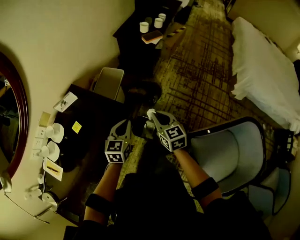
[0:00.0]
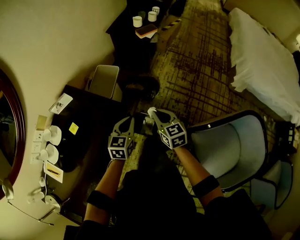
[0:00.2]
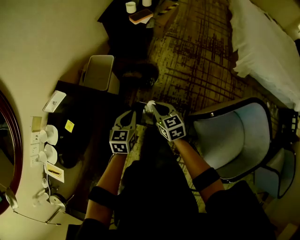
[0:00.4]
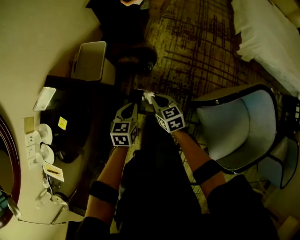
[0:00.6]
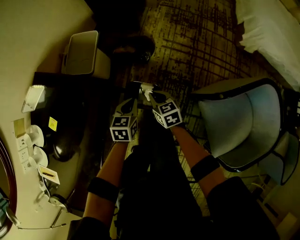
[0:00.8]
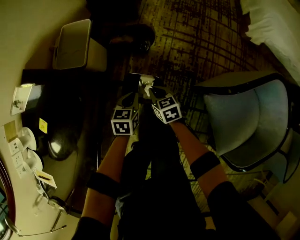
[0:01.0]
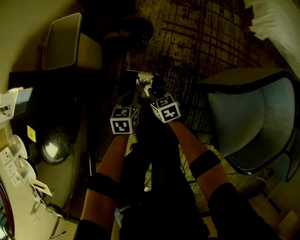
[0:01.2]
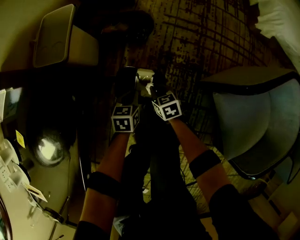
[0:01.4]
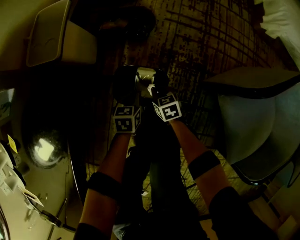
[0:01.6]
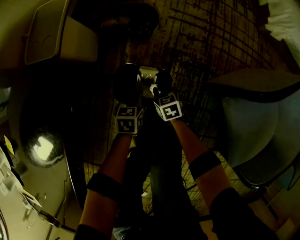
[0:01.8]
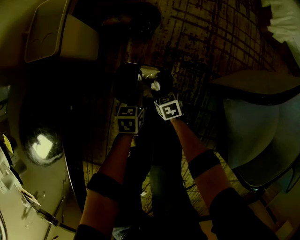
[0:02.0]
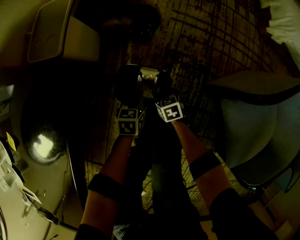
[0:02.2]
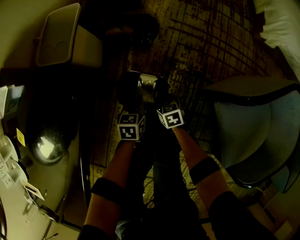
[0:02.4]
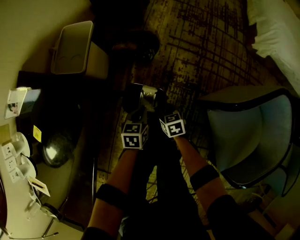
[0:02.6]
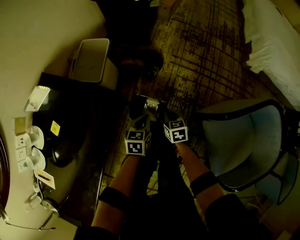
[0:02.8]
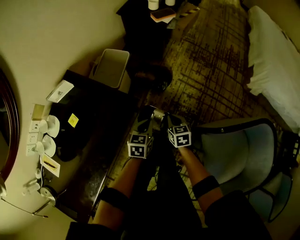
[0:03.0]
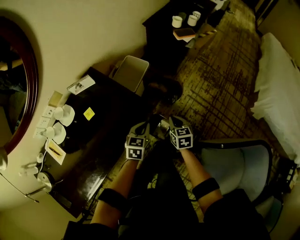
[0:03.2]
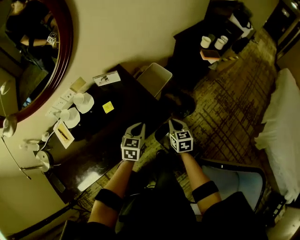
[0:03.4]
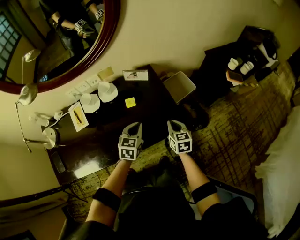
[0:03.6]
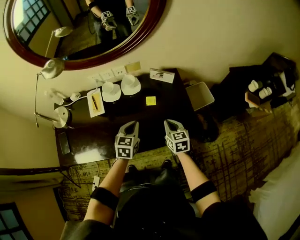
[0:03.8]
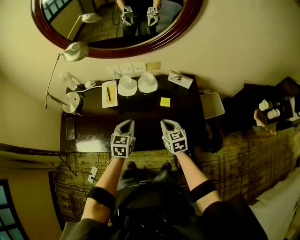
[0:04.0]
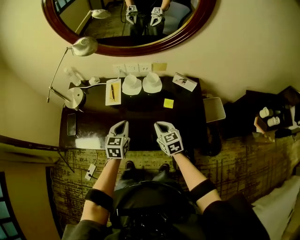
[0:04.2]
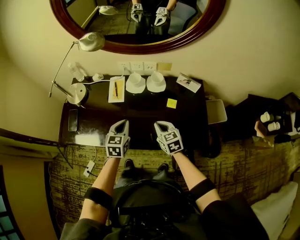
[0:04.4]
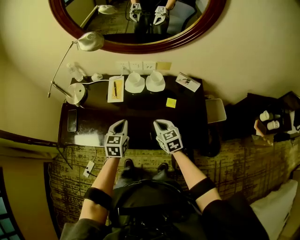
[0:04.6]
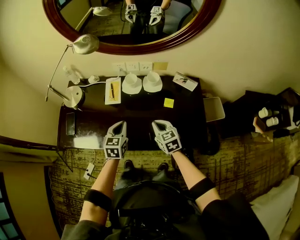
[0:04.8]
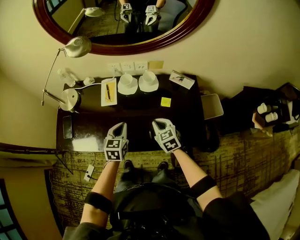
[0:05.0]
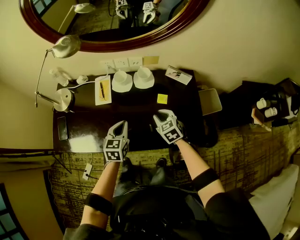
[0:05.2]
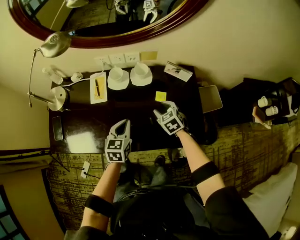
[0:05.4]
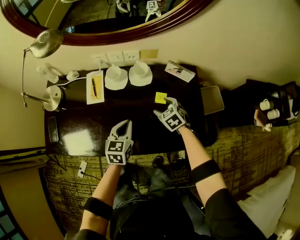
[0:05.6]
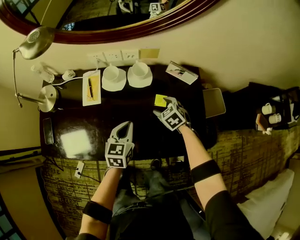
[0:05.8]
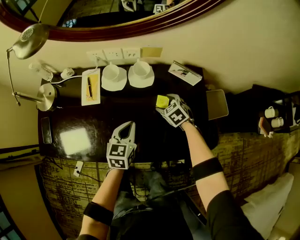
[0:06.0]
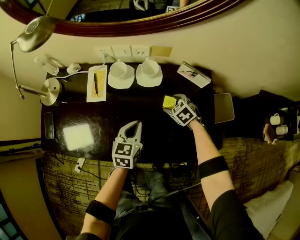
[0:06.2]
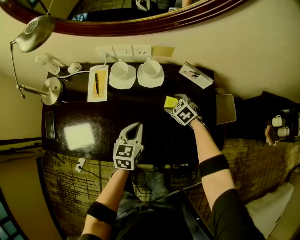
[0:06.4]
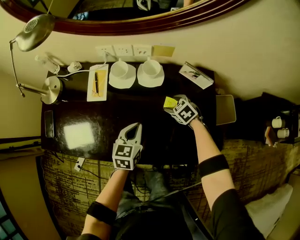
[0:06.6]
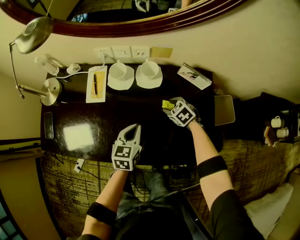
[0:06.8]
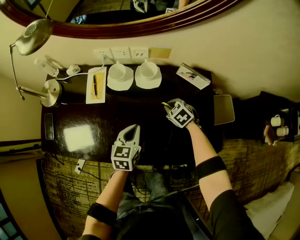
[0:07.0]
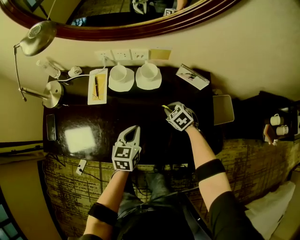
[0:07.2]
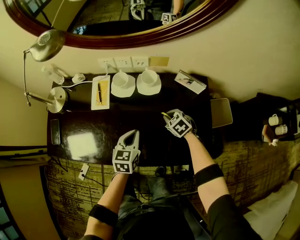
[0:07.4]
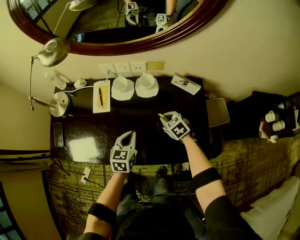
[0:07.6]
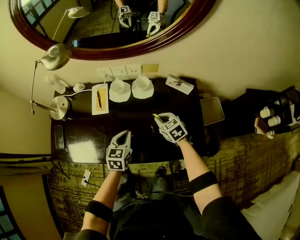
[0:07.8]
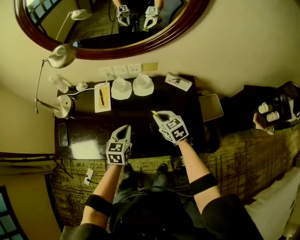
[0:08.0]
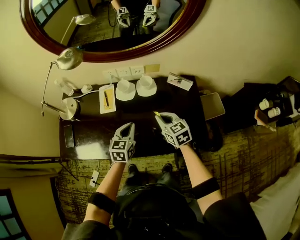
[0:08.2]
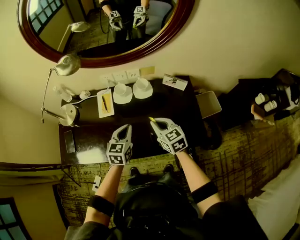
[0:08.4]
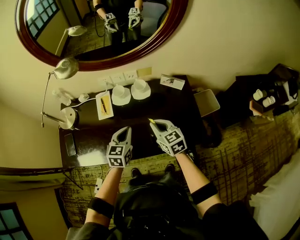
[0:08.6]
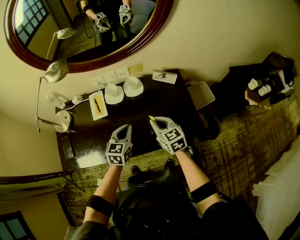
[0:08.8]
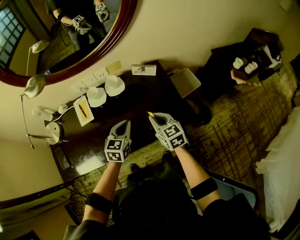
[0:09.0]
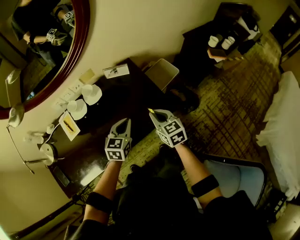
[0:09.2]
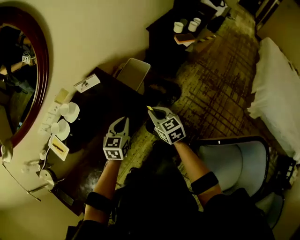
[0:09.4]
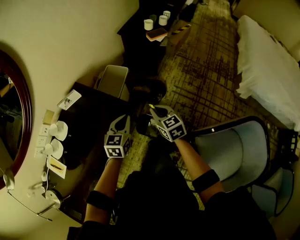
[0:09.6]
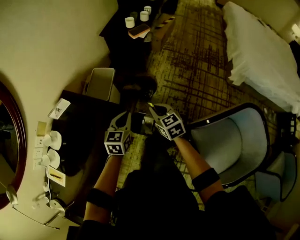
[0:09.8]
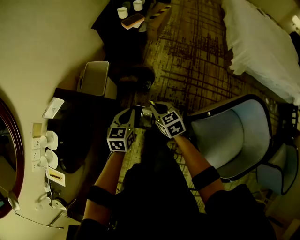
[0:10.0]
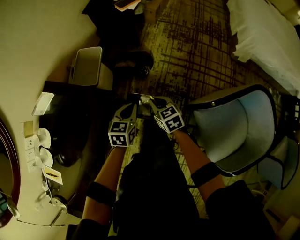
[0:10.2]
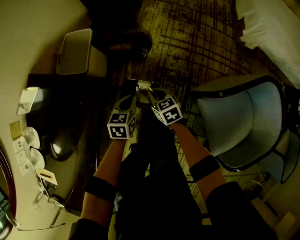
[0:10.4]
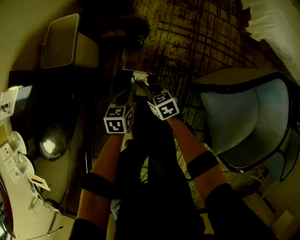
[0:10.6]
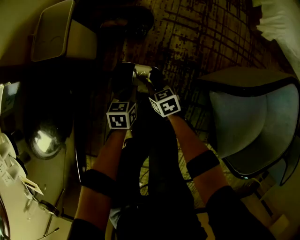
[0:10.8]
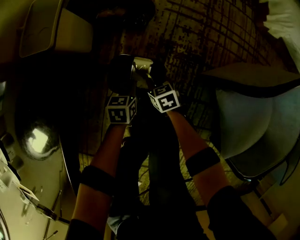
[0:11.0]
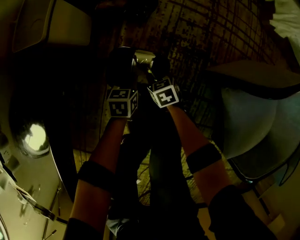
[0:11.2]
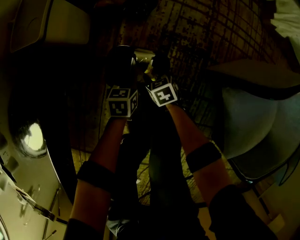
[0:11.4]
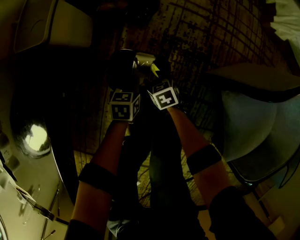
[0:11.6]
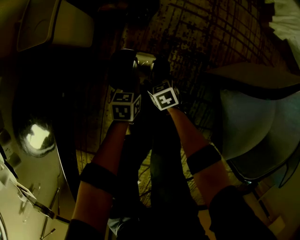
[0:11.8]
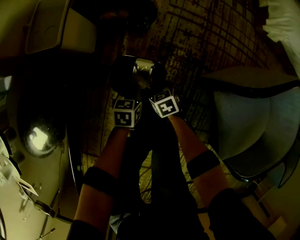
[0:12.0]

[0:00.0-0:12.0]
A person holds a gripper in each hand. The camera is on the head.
0:00.0 to 0:01.6: Both grippers travel together downward, approximately 60 cm. The left gripper rotates some 30 degrees. The right gripper changes its angle by about 30 degrees.
0:01.6 to 0:03.0: Both grippers move upward, roughly 40 cm.
0:03.0 to 0:04.4: The two grippers travel together, approximately 50 cm. The left gripper turns by approximately 70 degrees. The right gripper turns by approximately 80 degrees.
0:04.4 to 0:06.0: The left gripper goes approximately 15 cm to the right, downward and forward. The right gripper is displaced forward, downward and to the right by roughly 25 cm, rotates approximately 30 degrees, and opens its fingers.
0:06.0 to 0:07.6: The right gripper shifts by about 5 cm, and closes its fingers.
0:07.6 to 0:09.0: The right gripper moves upward, approximately 15 cm, and changes its angle by about 40 degrees, while the left gripper moves upward, approximately 10 cm, and changes its angle by roughly 30 degrees.
0:09.0 to 0:10.4: The pair of grippers is taken approximately 40 cm. The left gripper changes its angle by about 50 degrees; the right gripper rotates some 60 degrees.
0:10.4 to 0:12.0: The two grippers go roughly 30 cm downward. The right gripper opens its fingers.

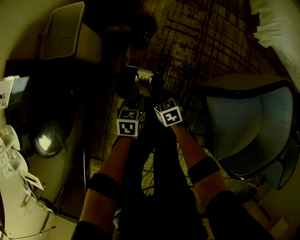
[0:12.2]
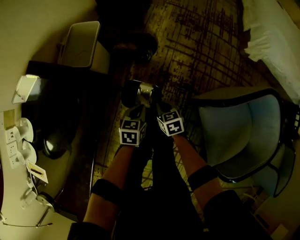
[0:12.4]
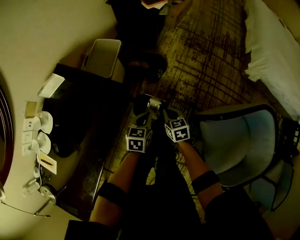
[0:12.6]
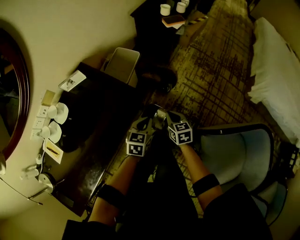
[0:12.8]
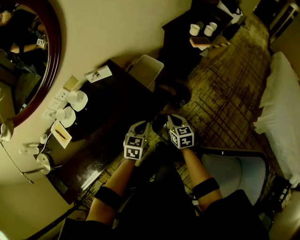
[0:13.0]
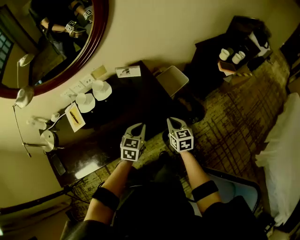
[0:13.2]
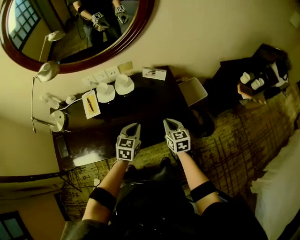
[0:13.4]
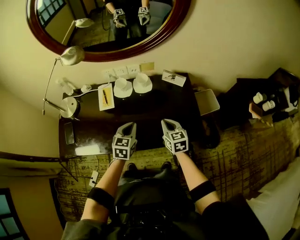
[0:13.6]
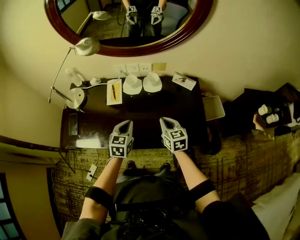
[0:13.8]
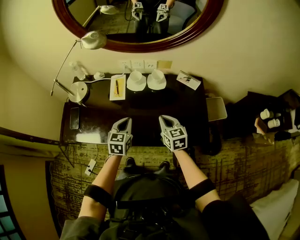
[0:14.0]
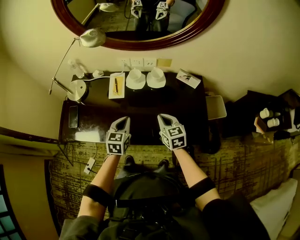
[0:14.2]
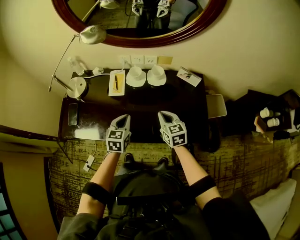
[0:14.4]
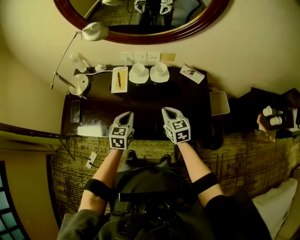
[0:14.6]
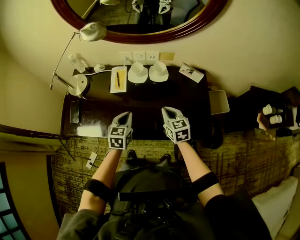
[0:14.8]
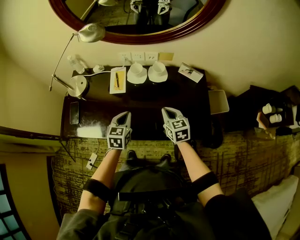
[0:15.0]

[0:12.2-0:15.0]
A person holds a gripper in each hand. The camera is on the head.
0:12.2 to 0:13.6: Both grippers are carried some 50 cm. The right gripper goes some 50 cm upward, and turns by roughly 60 degrees. Meanwhile the left gripper turns by approximately 70 degrees.
0:13.6 to 0:15.0: Both grippers move to the left, about 10 cm.

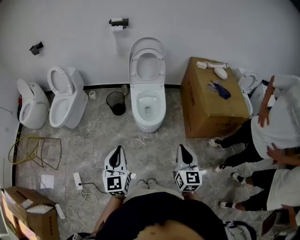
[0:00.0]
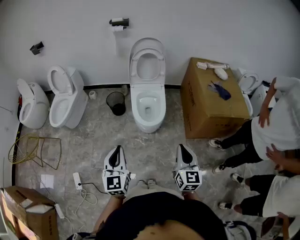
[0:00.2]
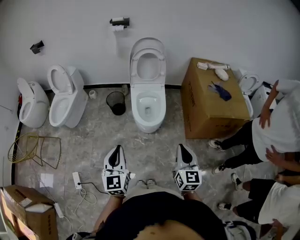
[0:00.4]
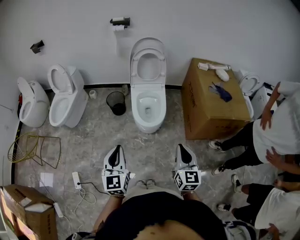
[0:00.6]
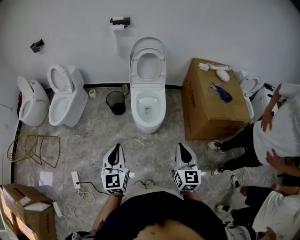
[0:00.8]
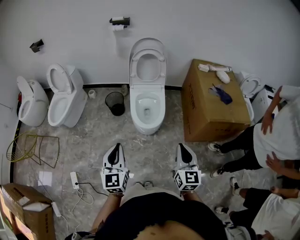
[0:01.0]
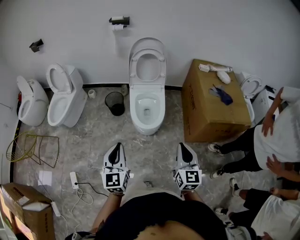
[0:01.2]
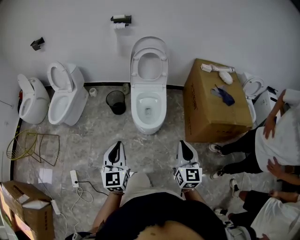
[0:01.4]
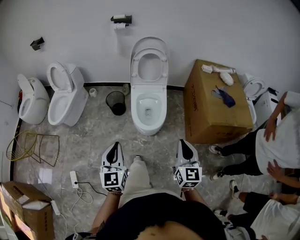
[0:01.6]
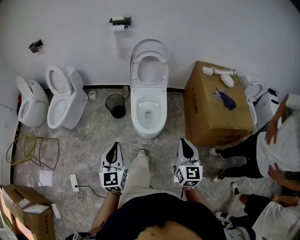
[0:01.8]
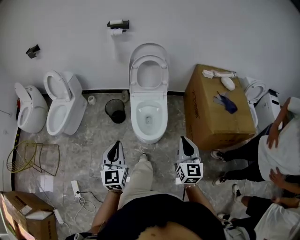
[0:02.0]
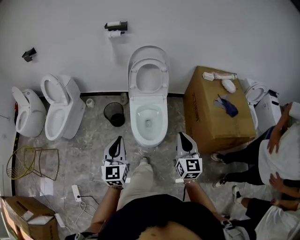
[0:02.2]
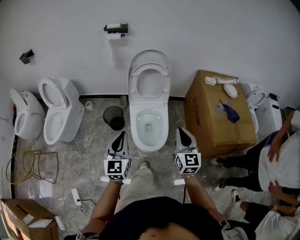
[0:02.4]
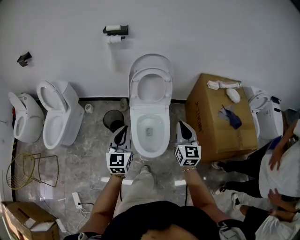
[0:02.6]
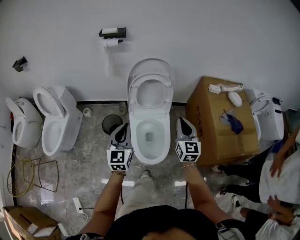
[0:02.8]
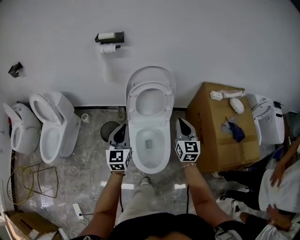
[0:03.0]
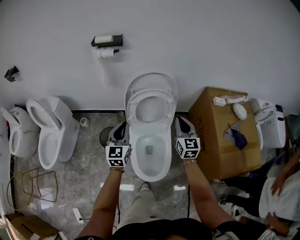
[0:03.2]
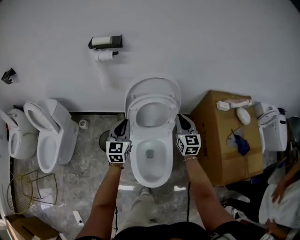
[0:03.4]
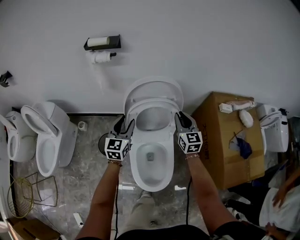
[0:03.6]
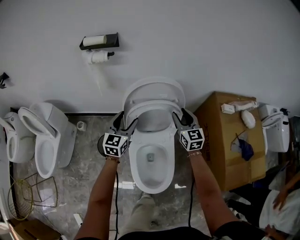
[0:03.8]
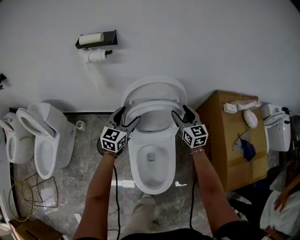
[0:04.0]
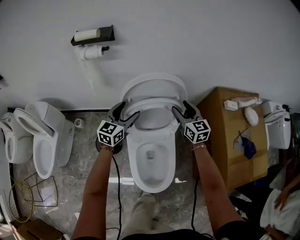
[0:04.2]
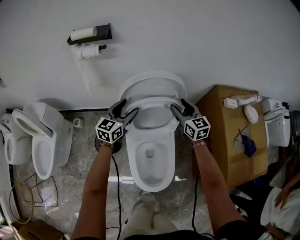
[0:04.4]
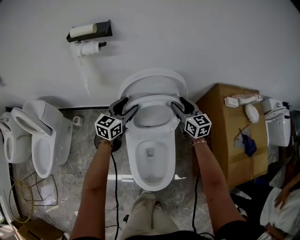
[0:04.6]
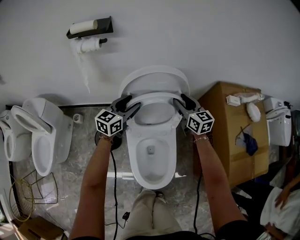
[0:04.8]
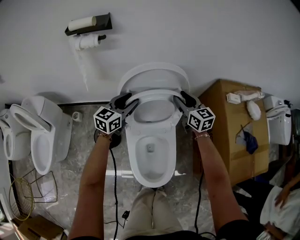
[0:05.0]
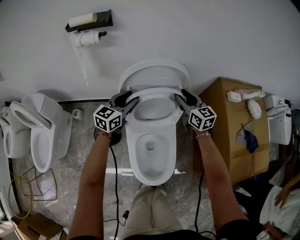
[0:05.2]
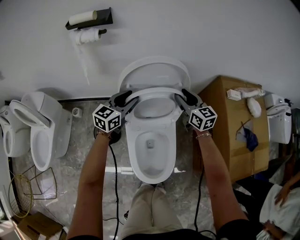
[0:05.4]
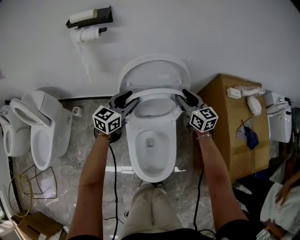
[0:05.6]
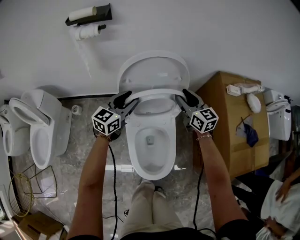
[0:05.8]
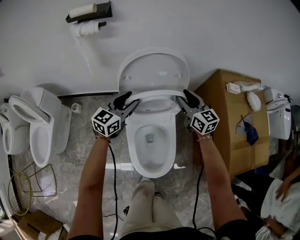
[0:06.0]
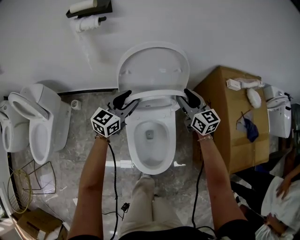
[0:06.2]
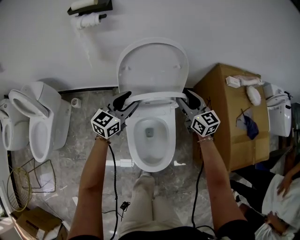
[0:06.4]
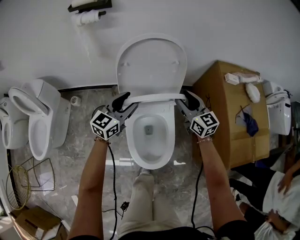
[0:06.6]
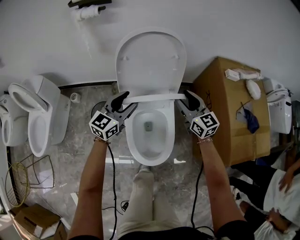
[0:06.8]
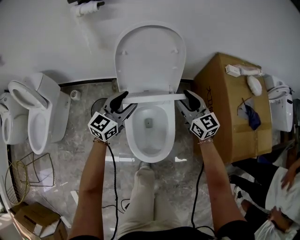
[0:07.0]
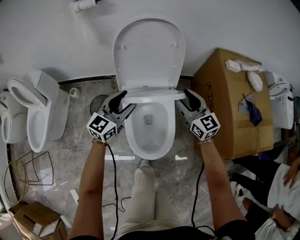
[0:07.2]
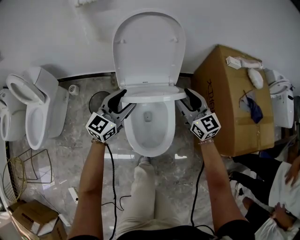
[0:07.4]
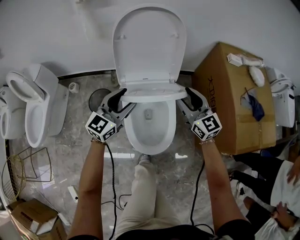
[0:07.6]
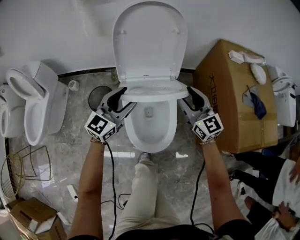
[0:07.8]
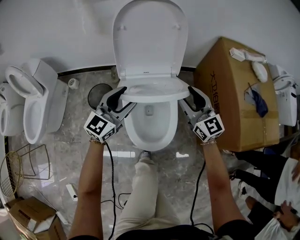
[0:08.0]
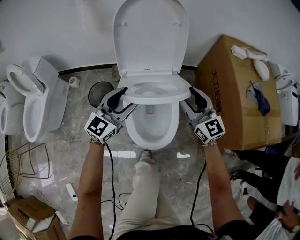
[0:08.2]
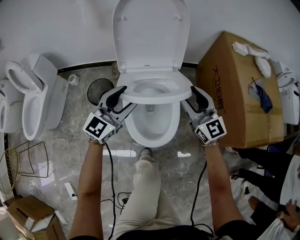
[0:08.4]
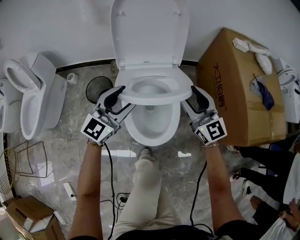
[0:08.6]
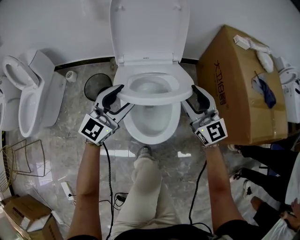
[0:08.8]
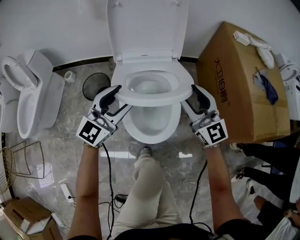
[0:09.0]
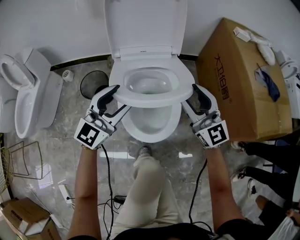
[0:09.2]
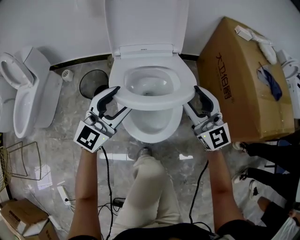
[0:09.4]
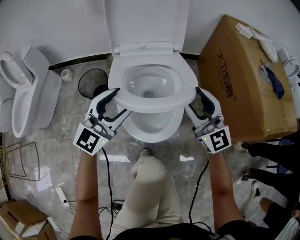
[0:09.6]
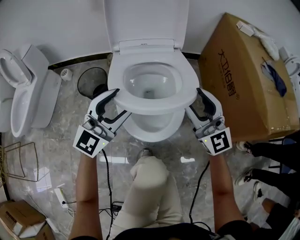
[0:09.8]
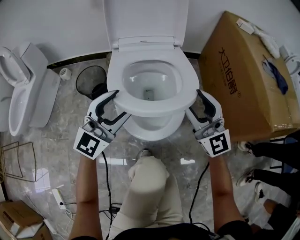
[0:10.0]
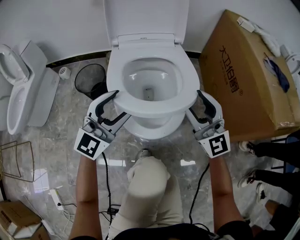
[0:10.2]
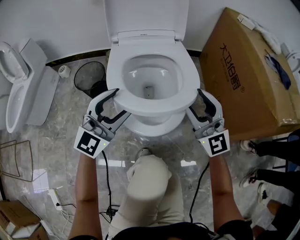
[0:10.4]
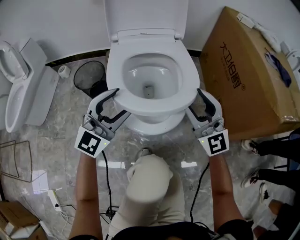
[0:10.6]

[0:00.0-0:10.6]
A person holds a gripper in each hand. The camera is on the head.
0:00.0 to 0:01.6: The two grippers go roughly 10 cm forward.
0:01.6 to 0:03.0: Both grippers are carried forward, roughly 50 cm.
0:03.0 to 0:04.6: Both grippers travel together forward, roughly 30 cm. The left gripper changes its angle by about 30 degrees, and opens up, while the right gripper changes its angle by approximately 20 degrees, and opens up.
0:04.6 to 0:06.0: Both grippers travel together backward, approximately 5 cm.
0:06.0 to 0:07.6: The two grippers go some 20 cm backward.
0:07.6 to 0:09.0: The two grippers go approximately 15 cm backward and downward.
0:09.0 to 0:10.6: Both grippers move downward and backward, roughly 15 cm.
